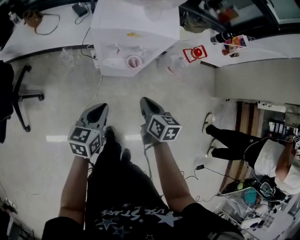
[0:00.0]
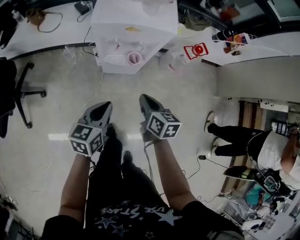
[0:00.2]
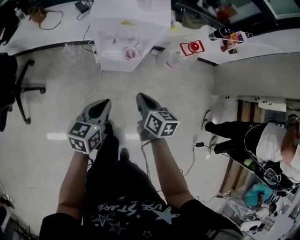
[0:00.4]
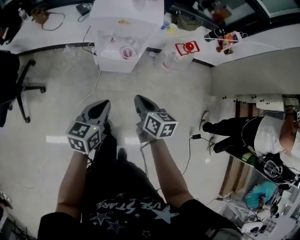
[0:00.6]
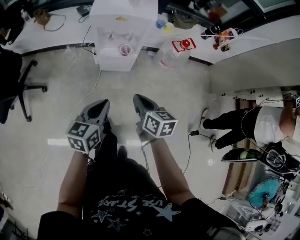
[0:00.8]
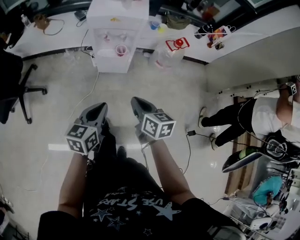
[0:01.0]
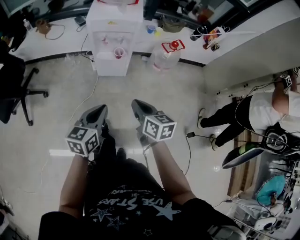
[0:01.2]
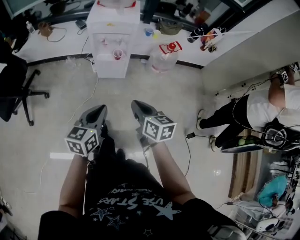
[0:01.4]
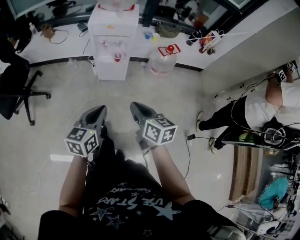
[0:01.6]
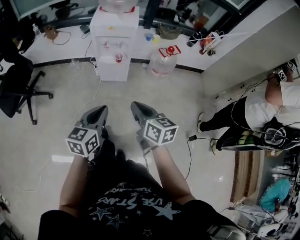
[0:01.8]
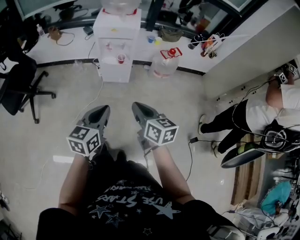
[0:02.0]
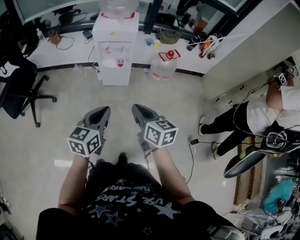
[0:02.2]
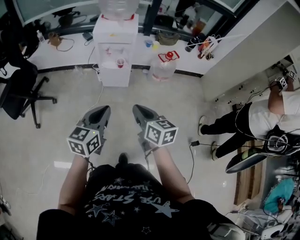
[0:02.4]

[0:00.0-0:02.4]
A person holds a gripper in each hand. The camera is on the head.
0:00.0 to 0:01.2: The right gripper travels backward and upward by some 25 cm. Meanwhile the left gripper goes about 25 cm backward, upward and to the right.
0:01.2 to 0:02.4: The right gripper heads backward and upward, covering about 15 cm, while the left gripper moves upward and backward, roughly 15 cm.

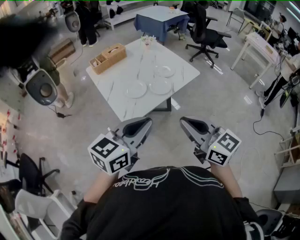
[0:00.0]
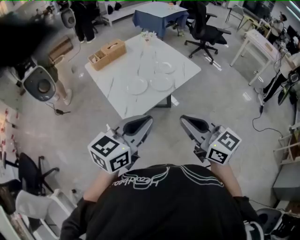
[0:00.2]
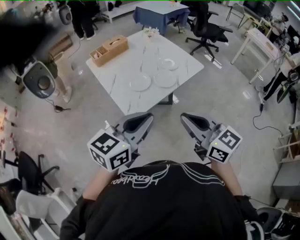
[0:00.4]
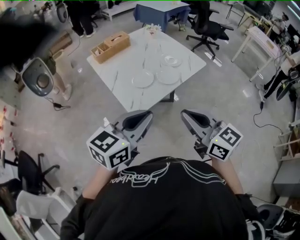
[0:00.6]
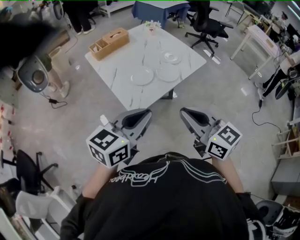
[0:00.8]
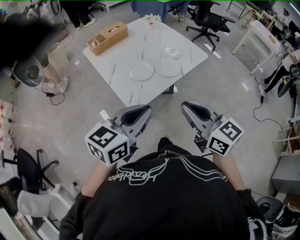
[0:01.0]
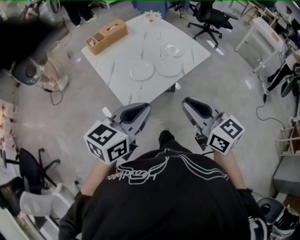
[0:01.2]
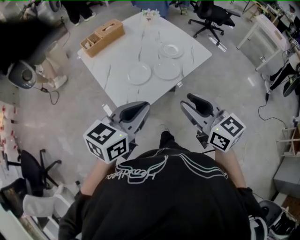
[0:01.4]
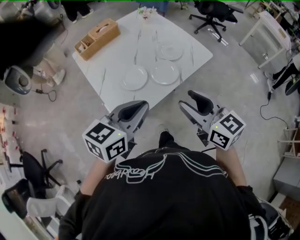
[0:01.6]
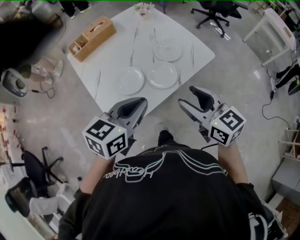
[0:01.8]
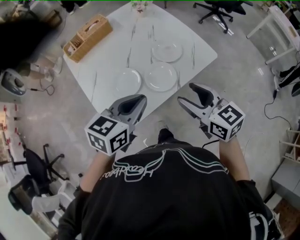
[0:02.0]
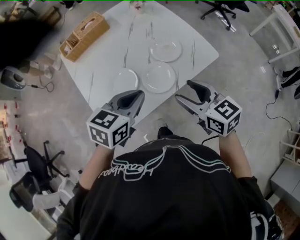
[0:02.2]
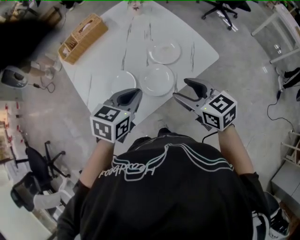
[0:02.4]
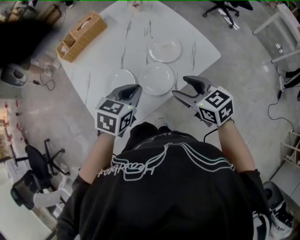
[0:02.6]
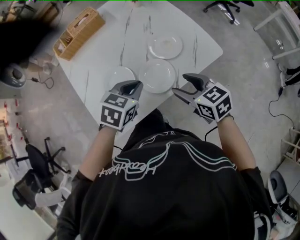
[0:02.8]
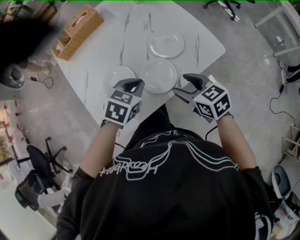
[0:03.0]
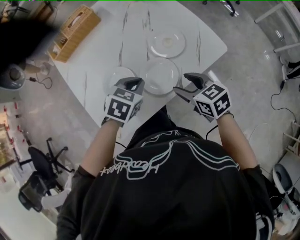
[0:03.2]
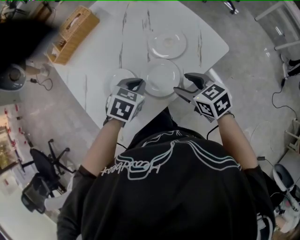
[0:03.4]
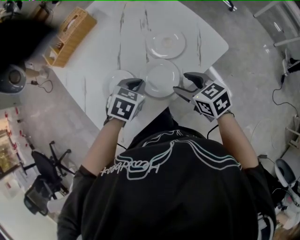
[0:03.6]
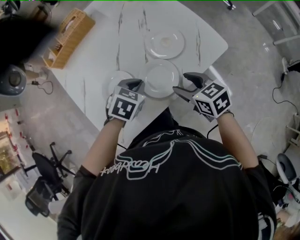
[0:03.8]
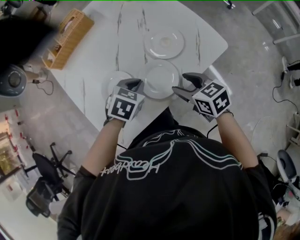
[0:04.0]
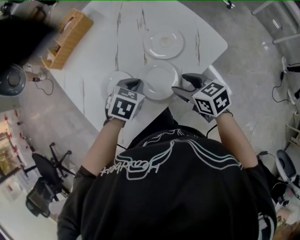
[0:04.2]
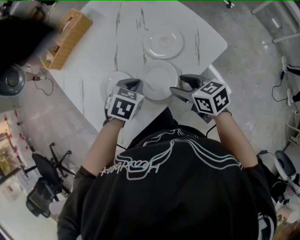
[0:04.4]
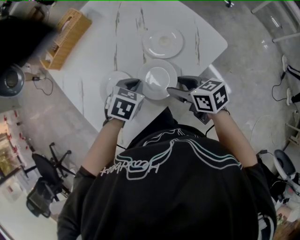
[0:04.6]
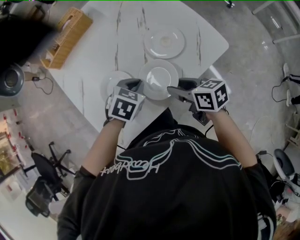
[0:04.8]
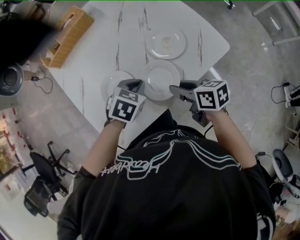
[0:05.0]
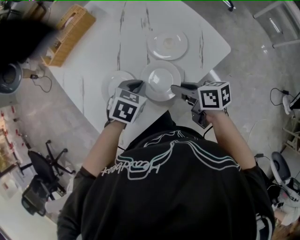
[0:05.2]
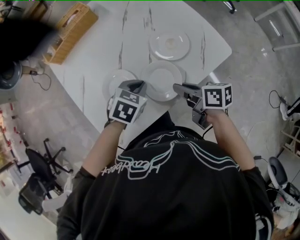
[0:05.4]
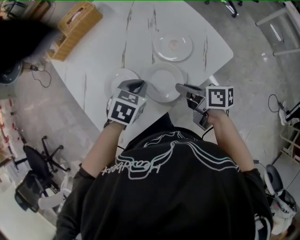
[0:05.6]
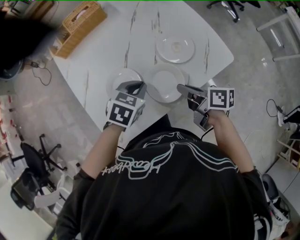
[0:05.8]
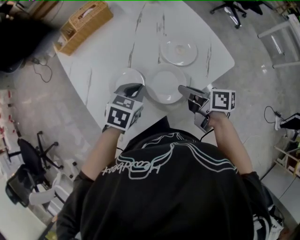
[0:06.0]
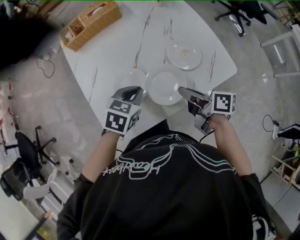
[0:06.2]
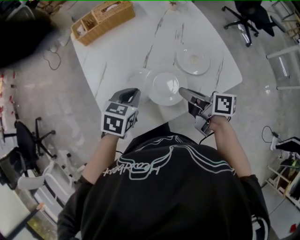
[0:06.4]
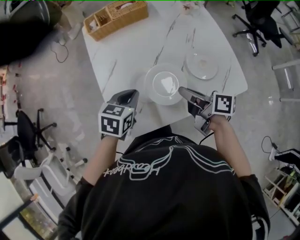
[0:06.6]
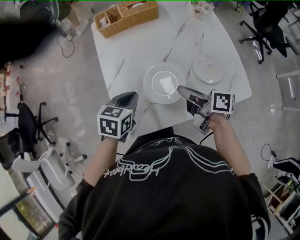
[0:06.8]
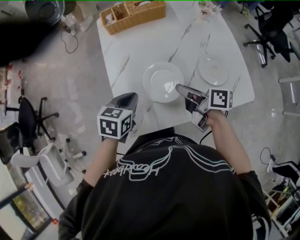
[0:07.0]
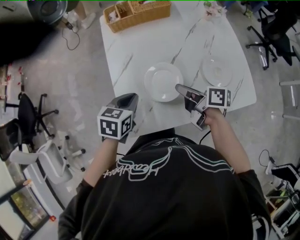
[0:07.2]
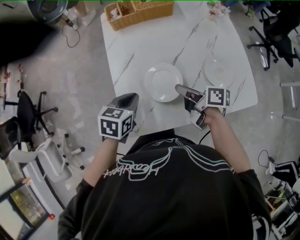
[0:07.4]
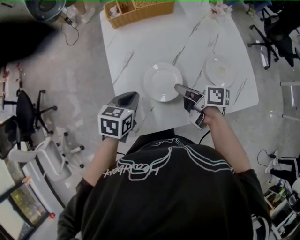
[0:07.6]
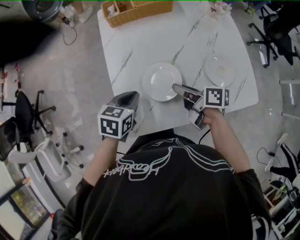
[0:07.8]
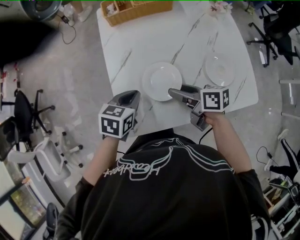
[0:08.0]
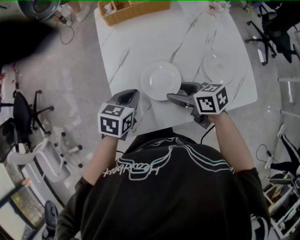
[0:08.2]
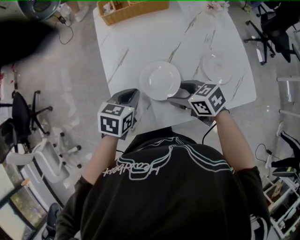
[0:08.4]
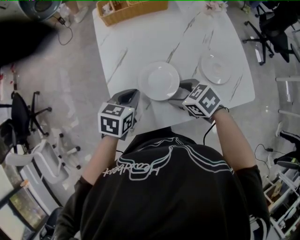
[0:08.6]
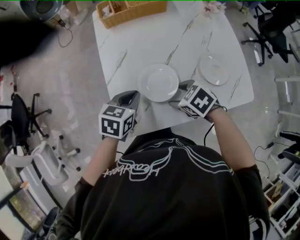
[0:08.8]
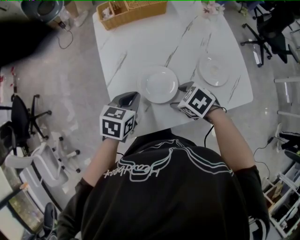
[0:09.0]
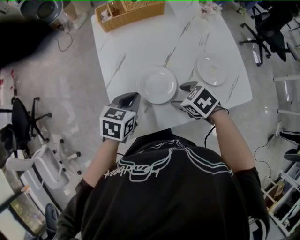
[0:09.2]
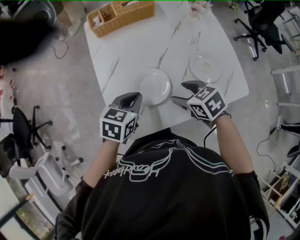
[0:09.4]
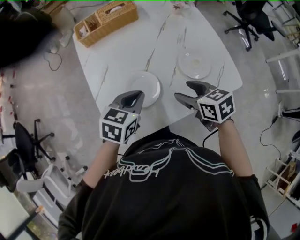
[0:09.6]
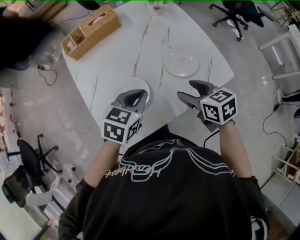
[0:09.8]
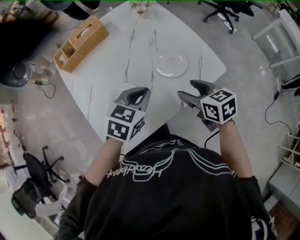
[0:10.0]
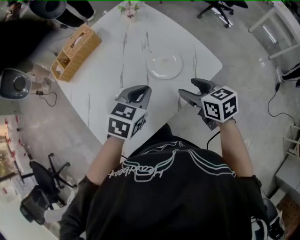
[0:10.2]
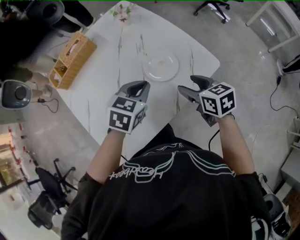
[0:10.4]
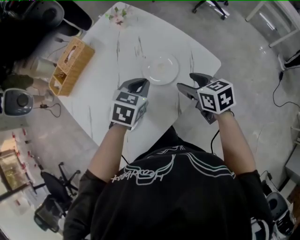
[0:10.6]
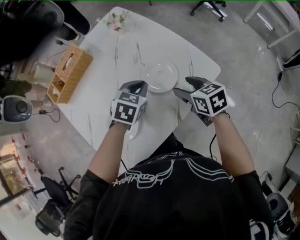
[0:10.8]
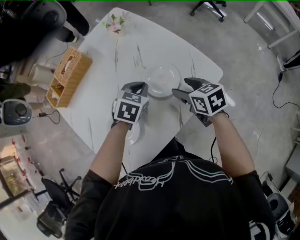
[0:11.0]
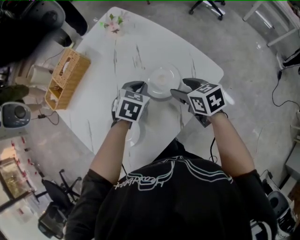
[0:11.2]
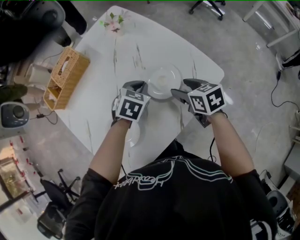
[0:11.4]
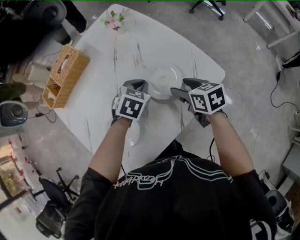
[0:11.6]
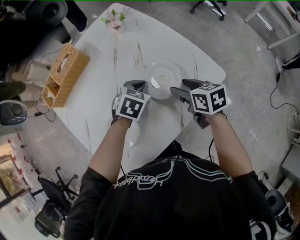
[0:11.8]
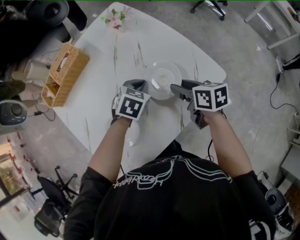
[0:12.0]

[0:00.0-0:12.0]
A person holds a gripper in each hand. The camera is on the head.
0:00.0 to 0:01.6: The two grippers go some 20 cm forward and downward. The right gripper opens up.
0:01.6 to 0:03.0: The right gripper shifts roughly 25 cm downward and forward, and rotates roughly 30 degrees. Meanwhile the left gripper goes some 30 cm forward and downward, and angles its fingers downward, by about 30 degrees.
0:03.0 to 0:04.4: The left gripper goes roughly 5 cm downward.
0:04.4 to 0:06.0: The right gripper swivels some 40 degrees, and closes up. The left gripper ends up some 5 cm from where it was.
0:06.0 to 0:07.6: The right gripper goes approximately 15 cm to the left and forward; the left gripper travels to the left by approximately 20 cm, and turns by approximately 30 degrees.
0:07.6 to 0:09.0: The right gripper shifts by some 5 cm, tips its fingers downward by about 40 degrees, and opens.
0:09.0 to 0:10.4: The right gripper moves some 25 cm, and rotates about 70 degrees; the left gripper changes place by some 25 cm, and turns by about 40 degrees.
0:10.4 to 0:12.0: The left gripper moves downward and forward, roughly 15 cm. Meanwhile the right gripper travels forward by roughly 10 cm.

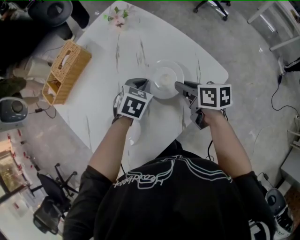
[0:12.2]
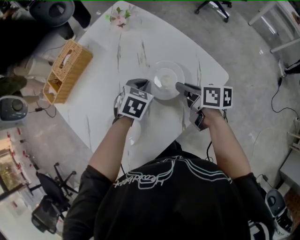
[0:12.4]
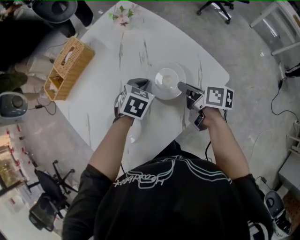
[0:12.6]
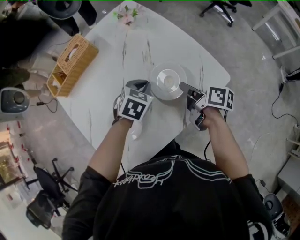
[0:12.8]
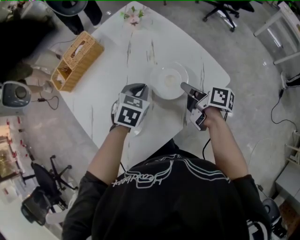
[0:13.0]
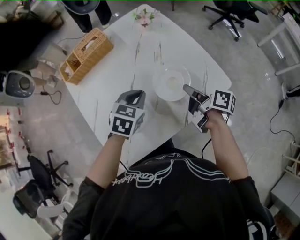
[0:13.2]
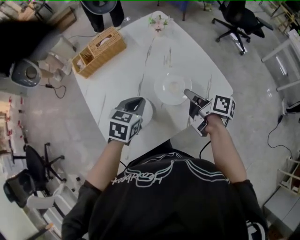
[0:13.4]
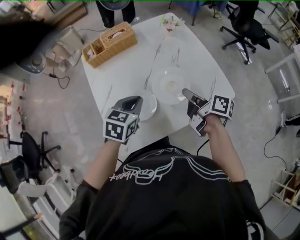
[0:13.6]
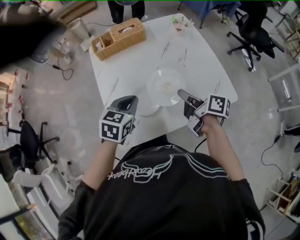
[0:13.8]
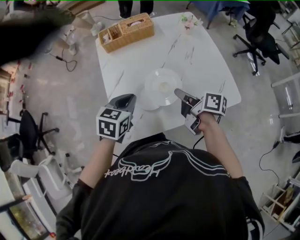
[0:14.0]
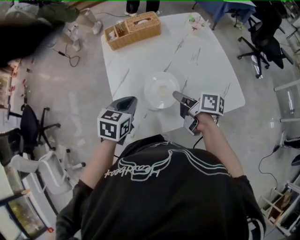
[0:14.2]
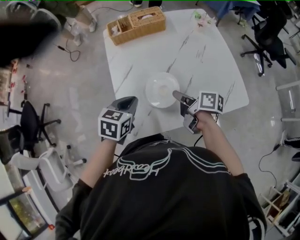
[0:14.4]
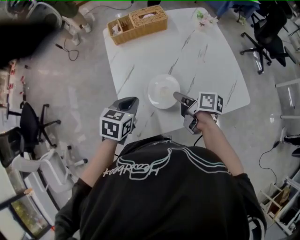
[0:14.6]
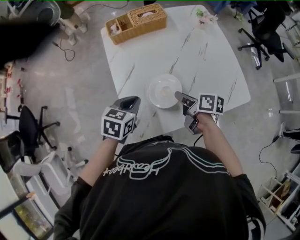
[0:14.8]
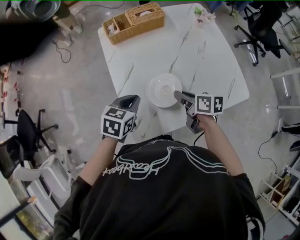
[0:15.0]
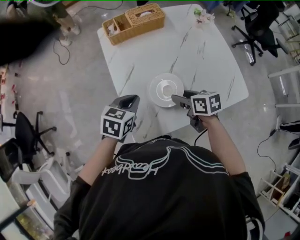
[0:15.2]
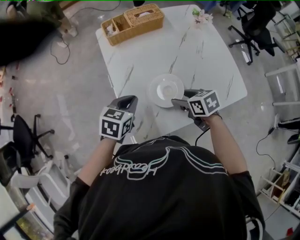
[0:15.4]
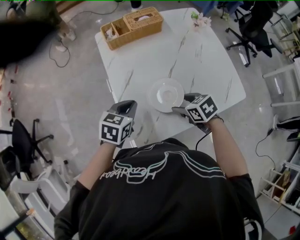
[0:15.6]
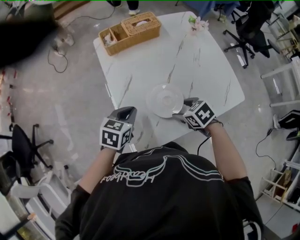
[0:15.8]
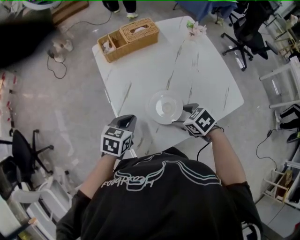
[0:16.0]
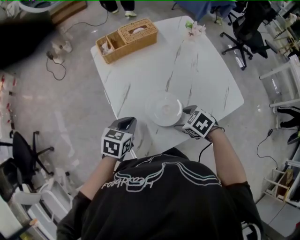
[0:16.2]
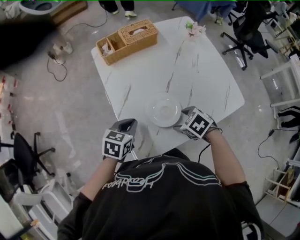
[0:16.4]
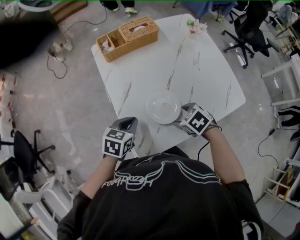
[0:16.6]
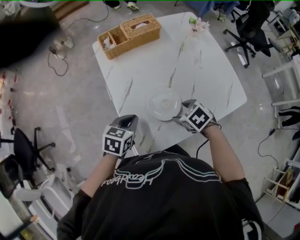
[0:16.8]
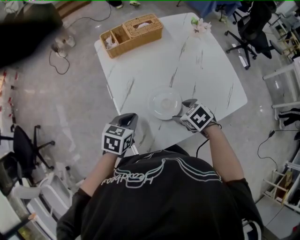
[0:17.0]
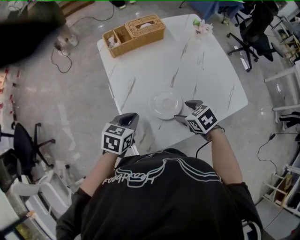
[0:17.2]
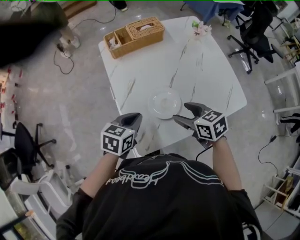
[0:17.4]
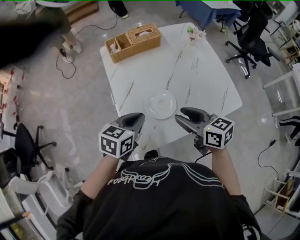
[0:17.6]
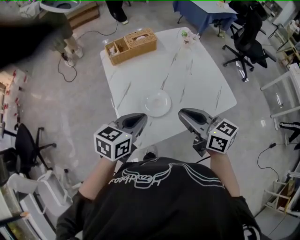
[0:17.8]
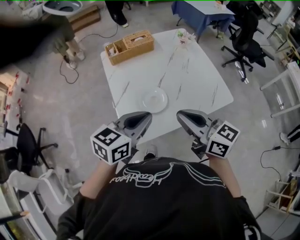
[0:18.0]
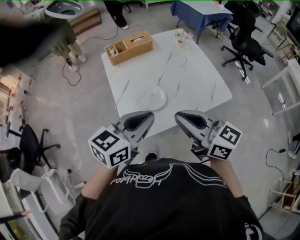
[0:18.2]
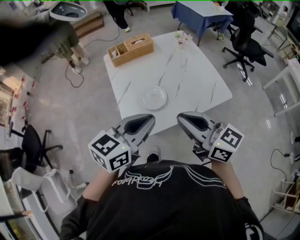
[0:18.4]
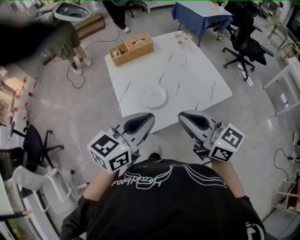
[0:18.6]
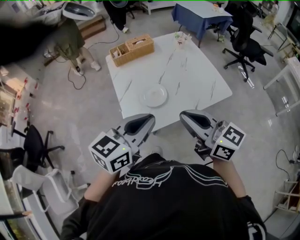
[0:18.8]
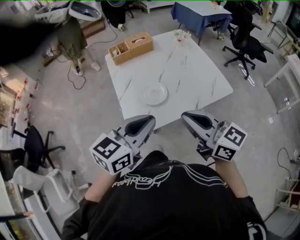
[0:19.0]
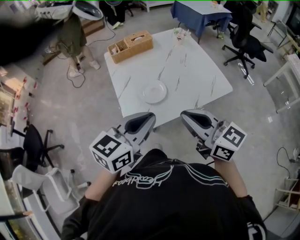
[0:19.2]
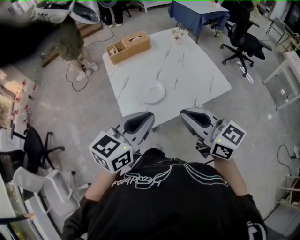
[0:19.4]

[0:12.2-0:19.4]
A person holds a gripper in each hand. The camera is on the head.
0:12.2 to 0:13.6: The right gripper moves upward, to the left and backward, roughly 15 cm, and changes its angle by about 20 degrees, while the left gripper travels to the left, backward and upward by approximately 25 cm, and changes its angle by roughly 30 degrees.
0:13.6 to 0:15.0: The left gripper moves to the left, roughly 15 cm. Meanwhile the right gripper moves to the left and downward, some 20 cm, and swivels some 30 degrees.
0:15.0 to 0:16.6: The right gripper shifts by approximately 5 cm, tips its fingers downward by roughly 30 degrees, and opens.
0:16.6 to 0:18.0: The left gripper is displaced upward, backward and to the right by approximately 25 cm, and changes its angle by approximately 30 degrees. Meanwhile the right gripper goes approximately 25 cm upward, tips its fingers upward by approximately 60 degrees, and closes its fingers.
0:18.0 to 0:19.4: Both grippers travel together backward, some 10 cm.

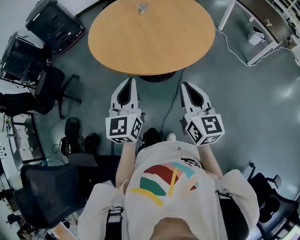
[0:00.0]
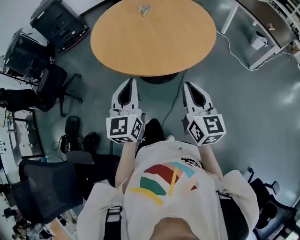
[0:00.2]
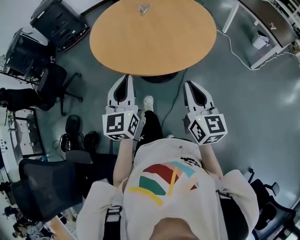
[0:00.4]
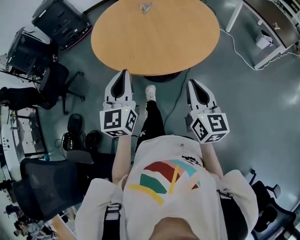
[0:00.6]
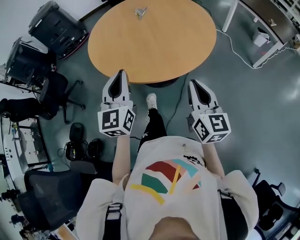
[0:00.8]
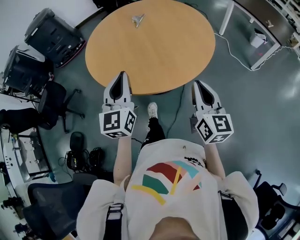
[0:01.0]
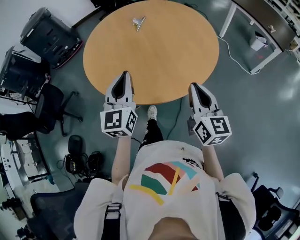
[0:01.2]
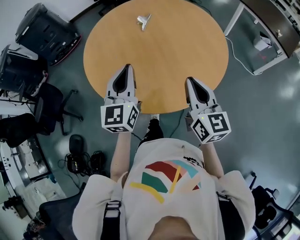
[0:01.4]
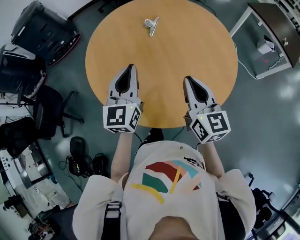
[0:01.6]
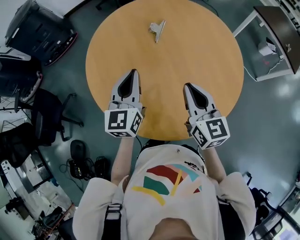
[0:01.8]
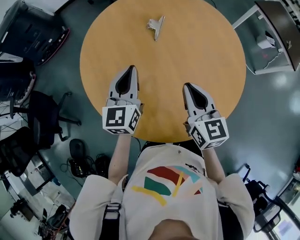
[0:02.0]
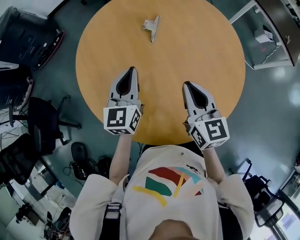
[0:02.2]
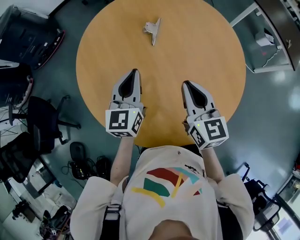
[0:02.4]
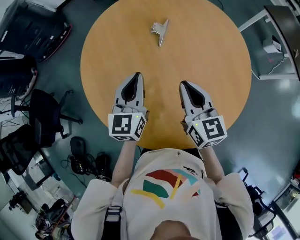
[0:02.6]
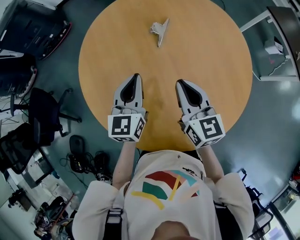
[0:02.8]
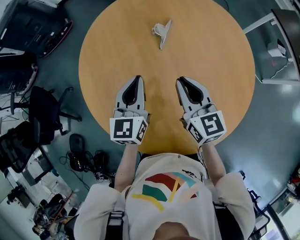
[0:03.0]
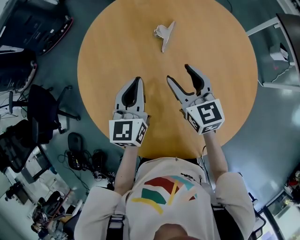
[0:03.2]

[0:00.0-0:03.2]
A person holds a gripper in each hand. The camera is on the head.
0:00.0 to 0:01.6: The pair of grippers is taken forward, approximately 50 cm.
0:01.6 to 0:03.2: The left gripper travels forward and downward by some 30 cm, while the right gripper is displaced forward by about 35 cm, rotates about 20 degrees, and opens up.
